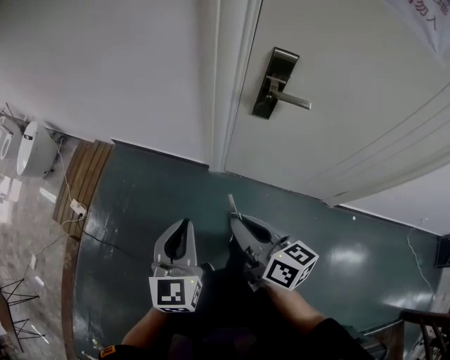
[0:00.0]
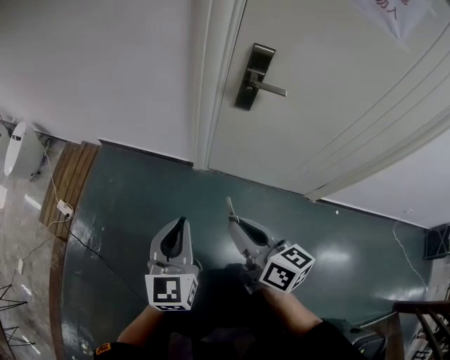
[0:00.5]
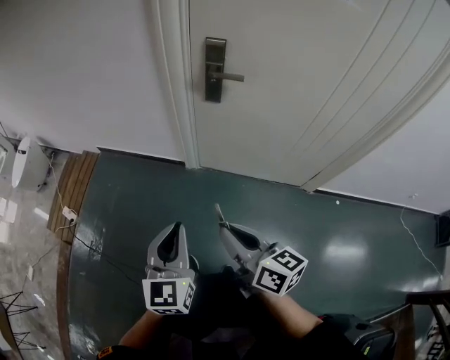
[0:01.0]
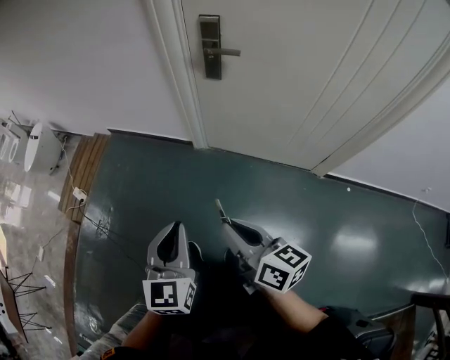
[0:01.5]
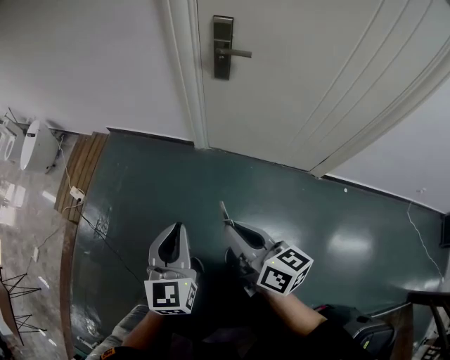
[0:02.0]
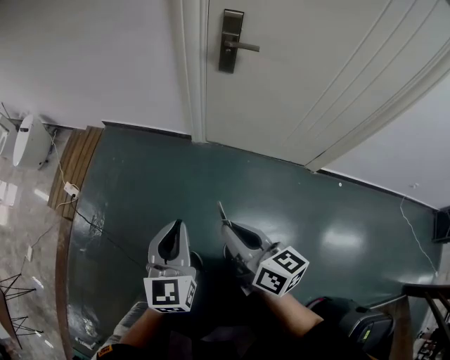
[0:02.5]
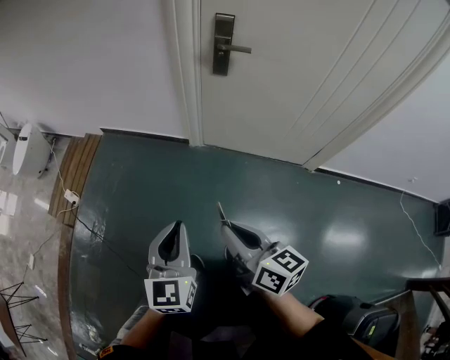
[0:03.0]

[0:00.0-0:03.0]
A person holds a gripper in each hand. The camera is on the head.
0:00.0 to 0:01.5: The left gripper goes some 25 cm backward and to the right, while the right gripper heads backward, covering roughly 25 cm.
0:01.5 to 0:03.0: The two grippers go roughly 10 cm to the left.

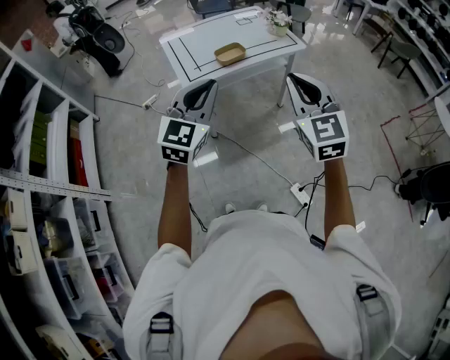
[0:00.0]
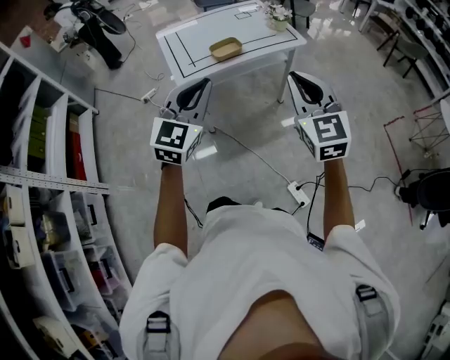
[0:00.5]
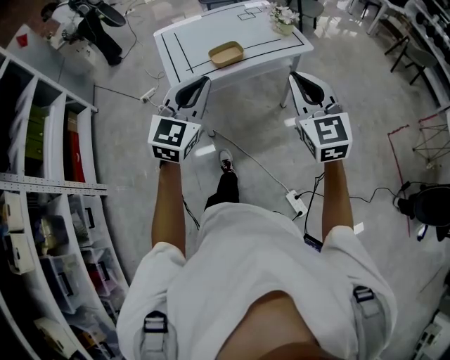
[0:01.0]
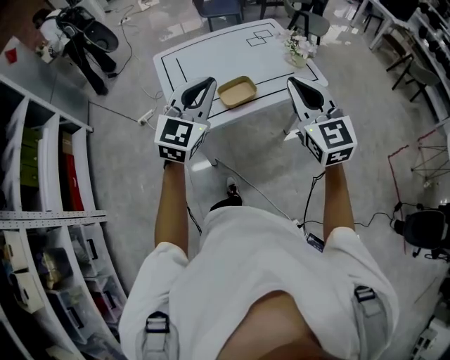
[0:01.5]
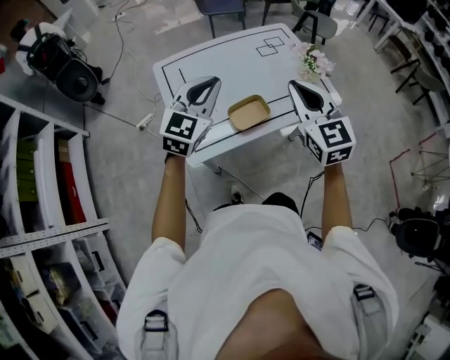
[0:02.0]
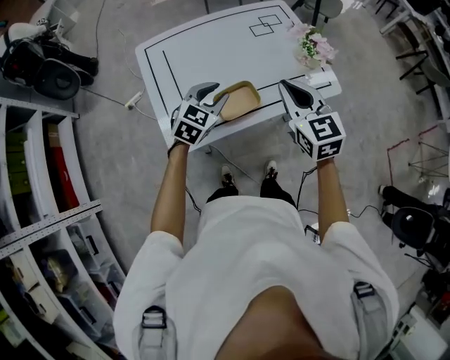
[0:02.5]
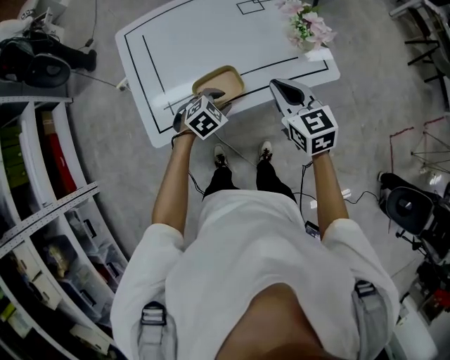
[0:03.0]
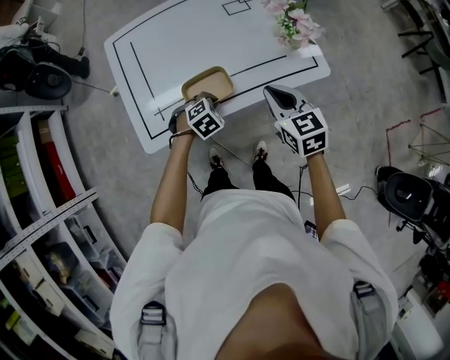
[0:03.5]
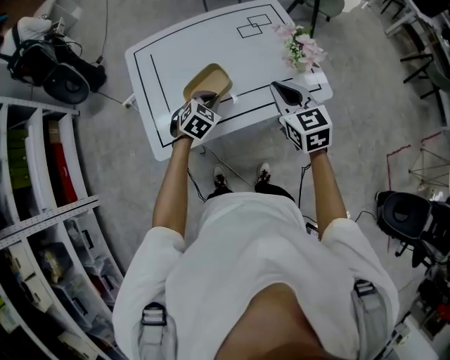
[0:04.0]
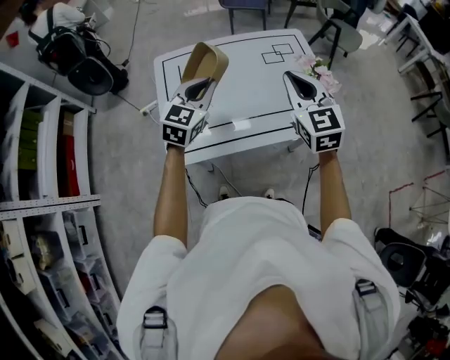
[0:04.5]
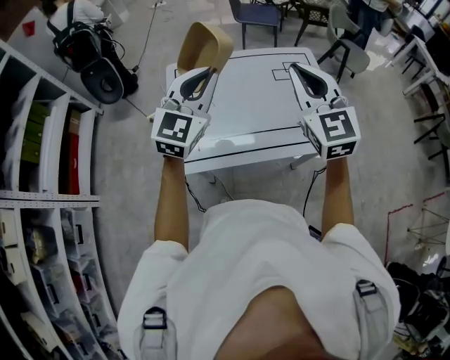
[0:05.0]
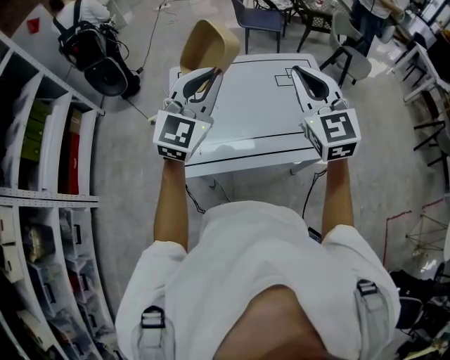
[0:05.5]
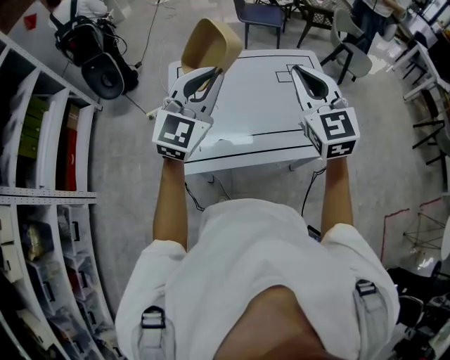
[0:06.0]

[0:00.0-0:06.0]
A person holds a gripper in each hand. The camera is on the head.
0:00.0 to 0:02.0: The two grippers travel together, forward, about 50 cm.
0:02.0 to 0:04.0: The right gripper goes approximately 20 cm downward, forward and to the right, while the left gripper is displaced downward and to the right by roughly 30 cm, tilts its fingers some 40 degrees downward, and opens, then closes once more.
0:04.0 to 0:06.0: The right gripper heads upward and to the left, covering approximately 20 cm, and swivels some 30 degrees, while the left gripper heads upward, covering approximately 35 cm, and points its fingers approximately 50 degrees further upward.

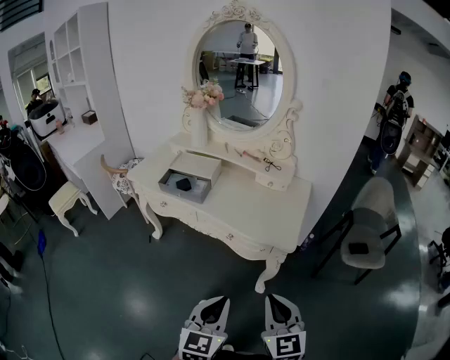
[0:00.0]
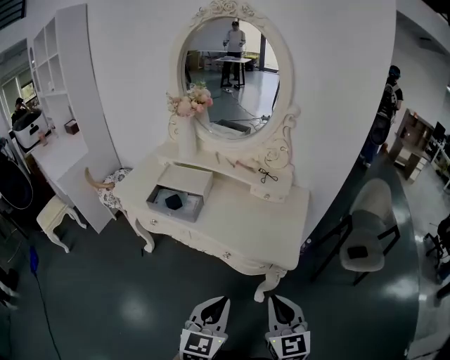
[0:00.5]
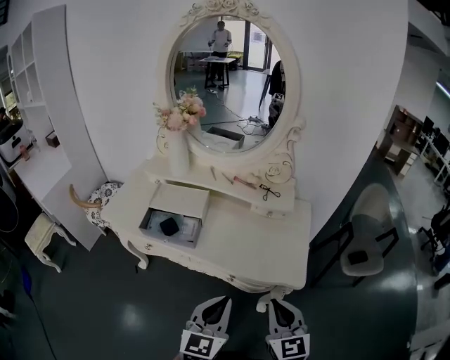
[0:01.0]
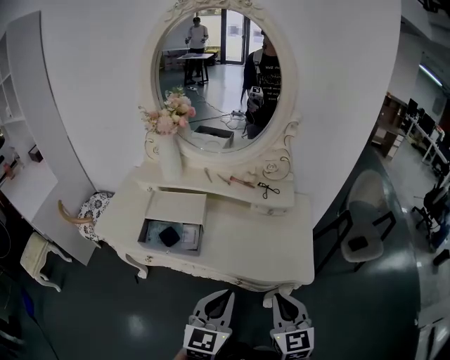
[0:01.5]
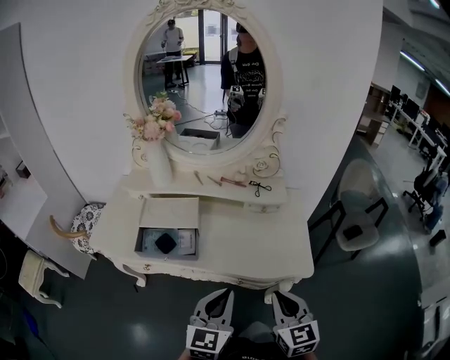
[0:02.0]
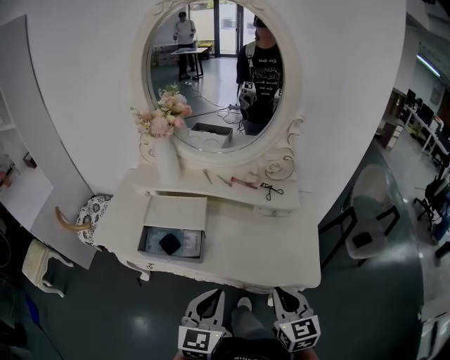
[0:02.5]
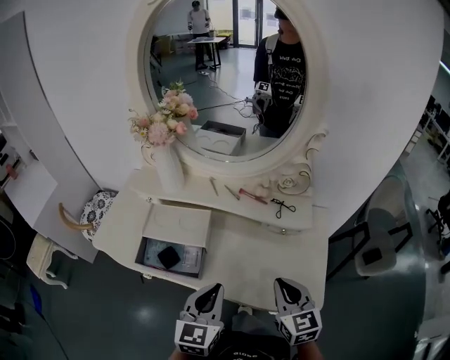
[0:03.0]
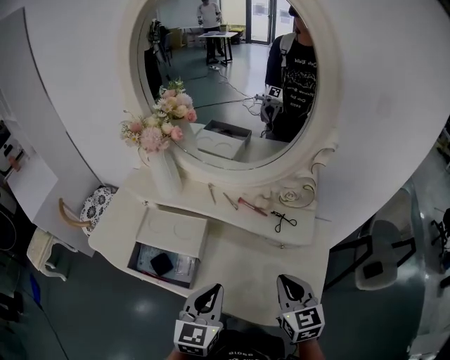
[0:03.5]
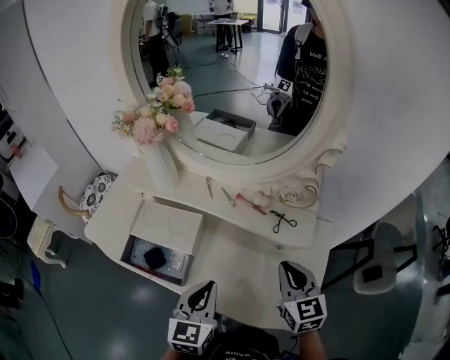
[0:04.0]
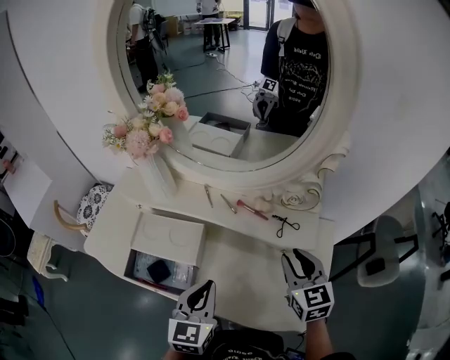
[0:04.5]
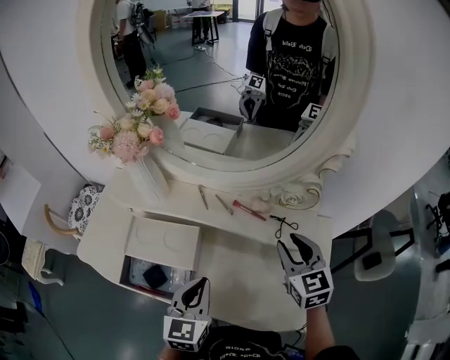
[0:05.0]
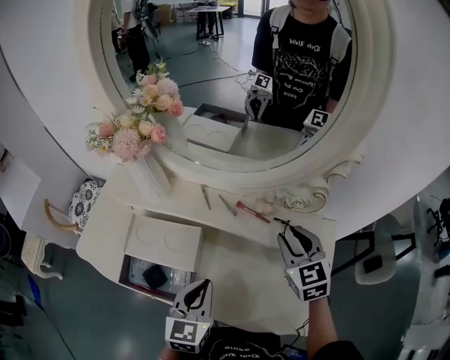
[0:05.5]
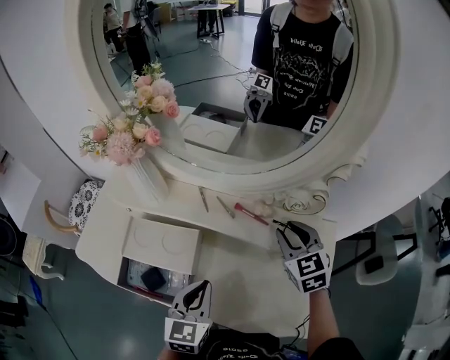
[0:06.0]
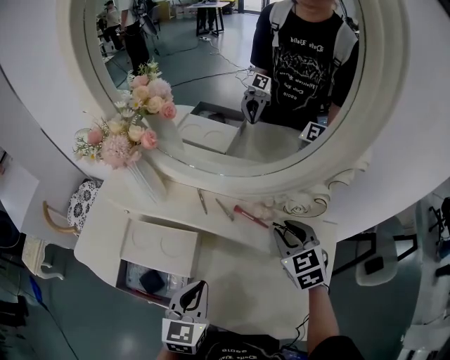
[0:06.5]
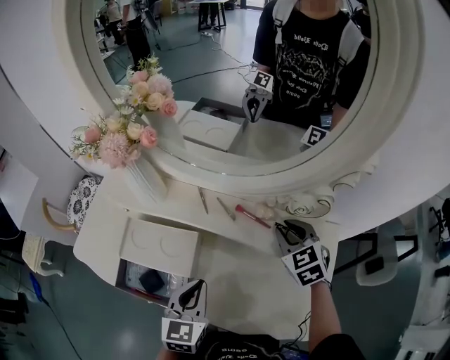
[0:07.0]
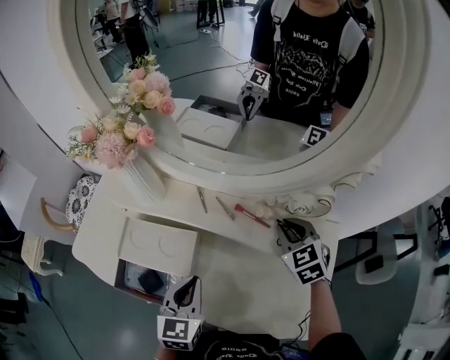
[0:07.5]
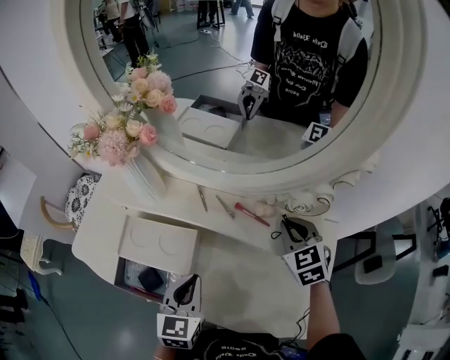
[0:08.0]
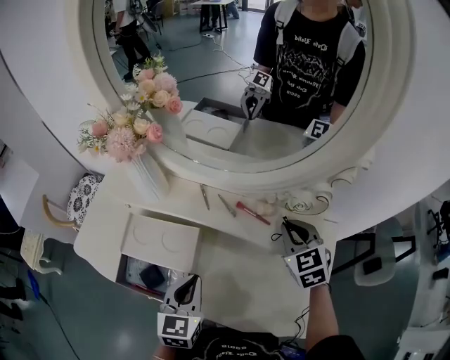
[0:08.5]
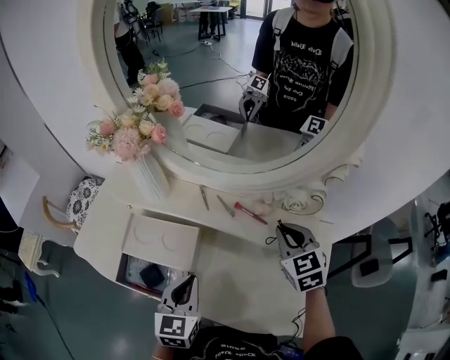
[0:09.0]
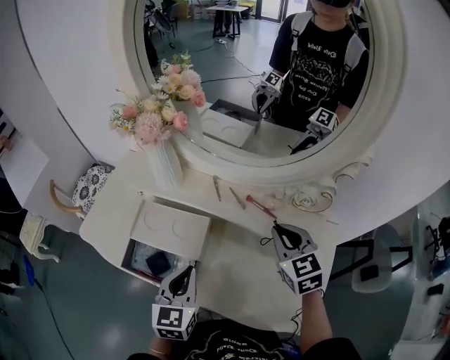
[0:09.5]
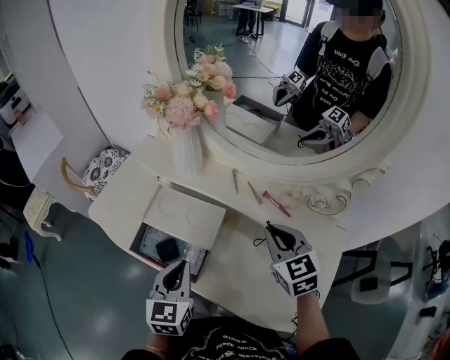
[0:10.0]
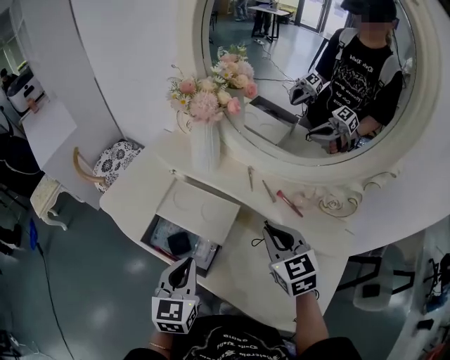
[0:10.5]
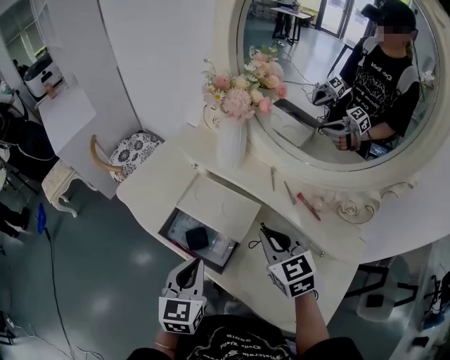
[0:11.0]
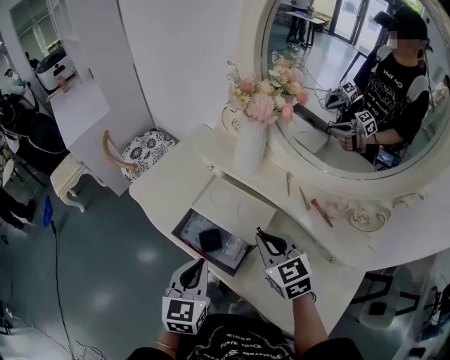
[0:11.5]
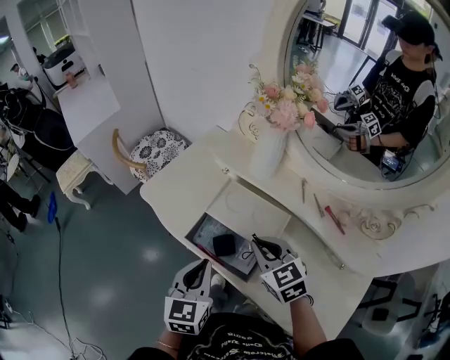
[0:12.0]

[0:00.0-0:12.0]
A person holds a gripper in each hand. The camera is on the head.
0:00.0 to 0:02.0: The grippers both shift forward and to the left by approximately 25 cm. The right gripper turns by some 20 degrees.
0:02.0 to 0:04.0: The left gripper heads forward, covering roughly 20 cm, and rotates roughly 20 degrees. Meanwhile the right gripper is displaced forward by some 30 cm.
0:04.0 to 0:06.0: The left gripper shifts some 5 cm forward. Meanwhile the right gripper heads forward, covering approximately 15 cm, and opens its fingers.
0:06.0 to 0:08.0: The right gripper closes.
0:08.0 to 0:10.0: The left gripper moves to the left, about 10 cm. The right gripper heads to the left and backward, covering roughly 15 cm.
0:10.0 to 0:12.0: The left gripper heads to the left, covering roughly 10 cm. The right gripper heads to the left, covering about 20 cm, and changes its angle by roughly 20 degrees.

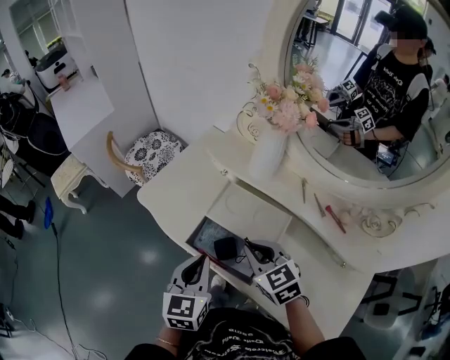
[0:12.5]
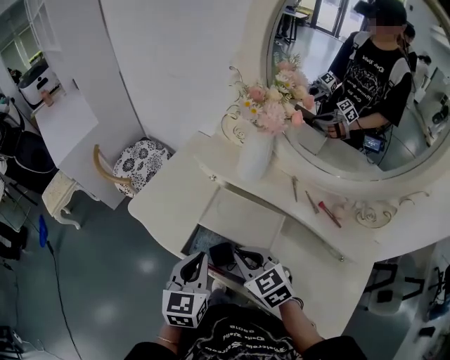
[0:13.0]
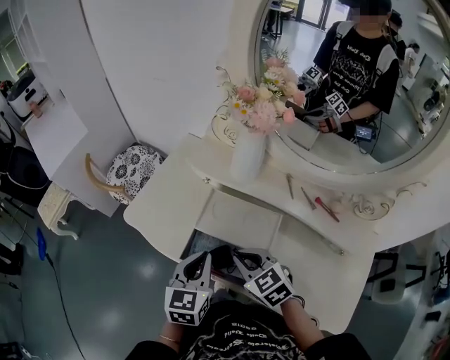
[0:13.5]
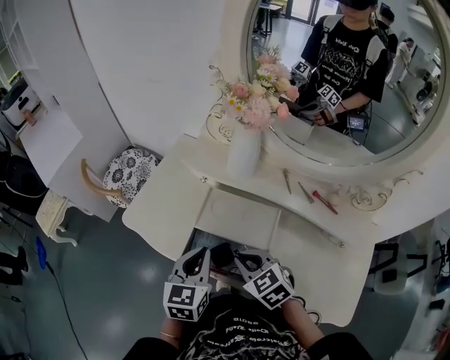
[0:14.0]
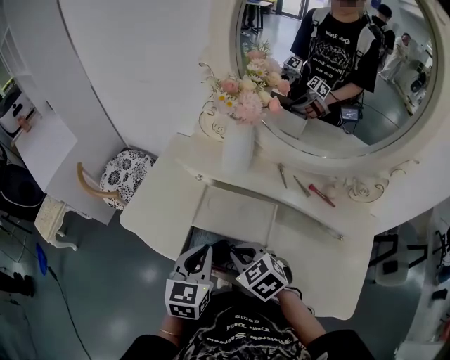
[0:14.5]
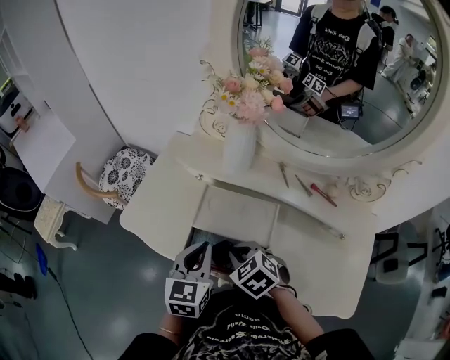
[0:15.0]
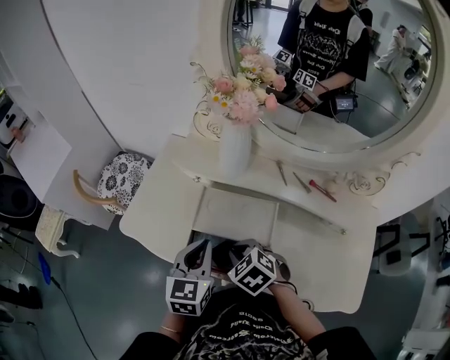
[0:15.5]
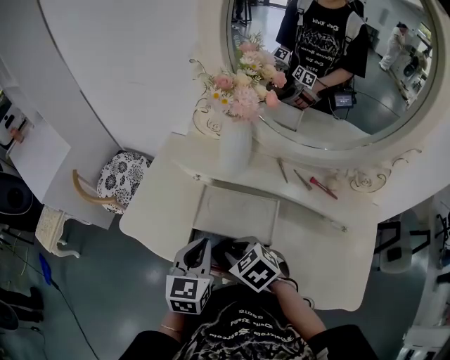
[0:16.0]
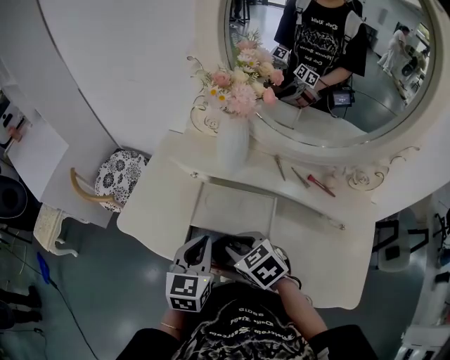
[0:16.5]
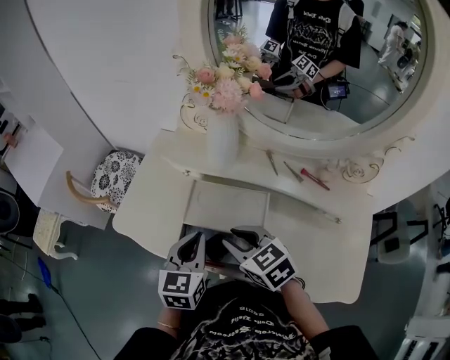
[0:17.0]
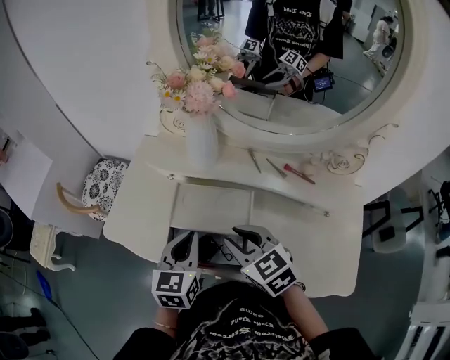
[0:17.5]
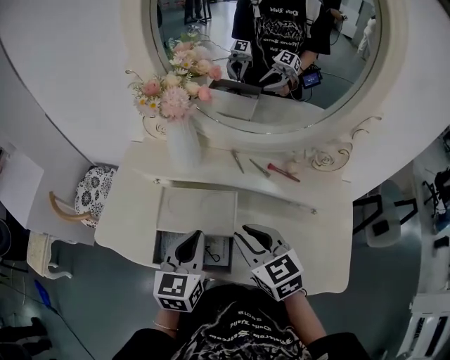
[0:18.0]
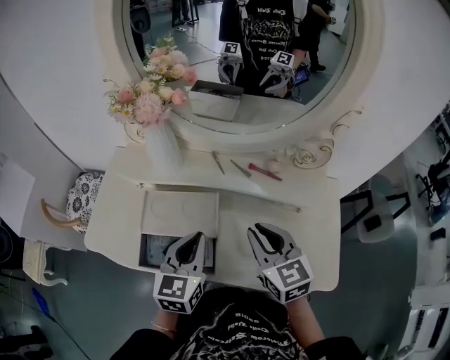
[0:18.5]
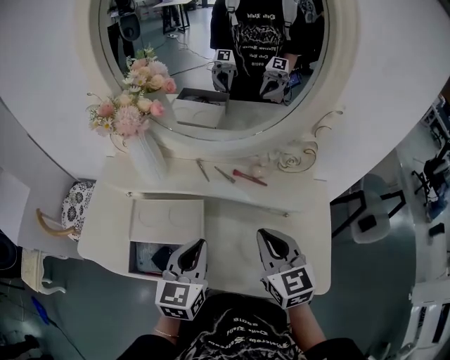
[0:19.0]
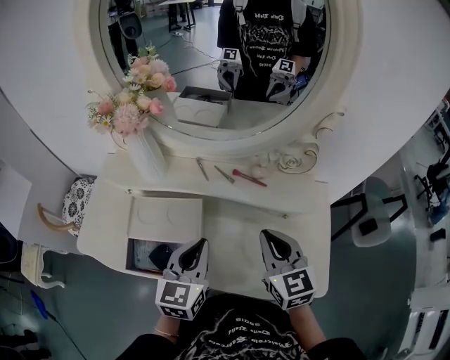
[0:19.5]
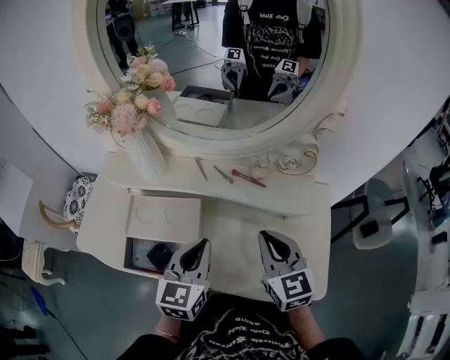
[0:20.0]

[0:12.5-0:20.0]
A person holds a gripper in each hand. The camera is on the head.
0:12.5 to 0:14.5: The left gripper shifts by about 5 cm.
0:14.5 to 0:16.5: The right gripper opens its fingers.
0:16.5 to 0:18.0: The right gripper shifts some 15 cm to the right and upward, and swivels some 30 degrees, while the left gripper goes roughly 10 cm to the right.
0:18.0 to 0:20.0: Both grippers move to the right, roughly 15 cm. The right gripper closes.
